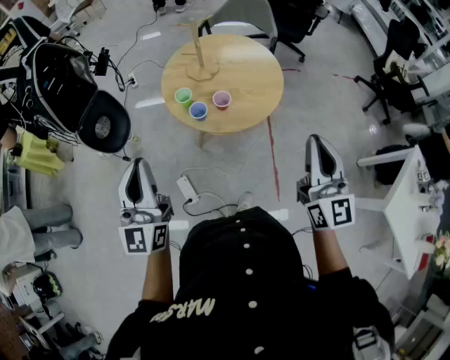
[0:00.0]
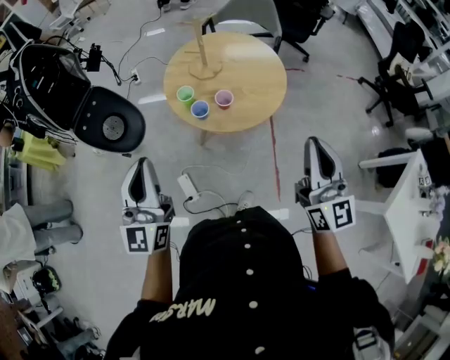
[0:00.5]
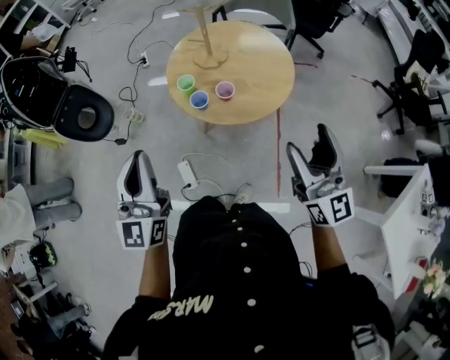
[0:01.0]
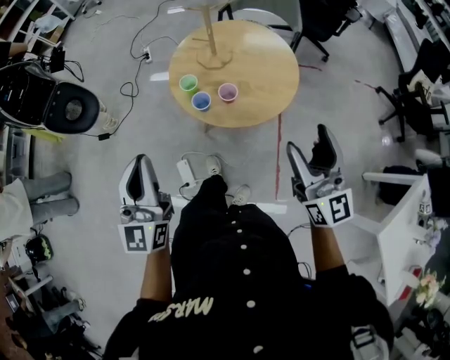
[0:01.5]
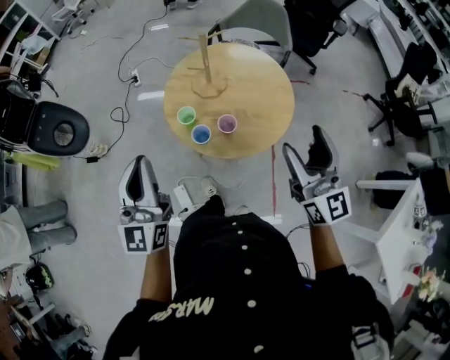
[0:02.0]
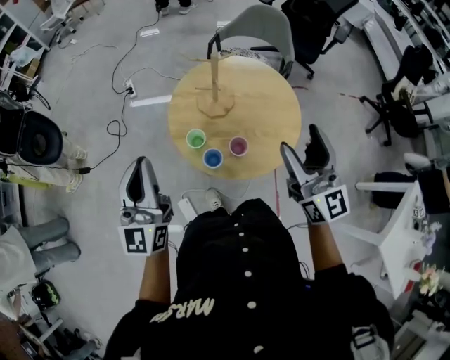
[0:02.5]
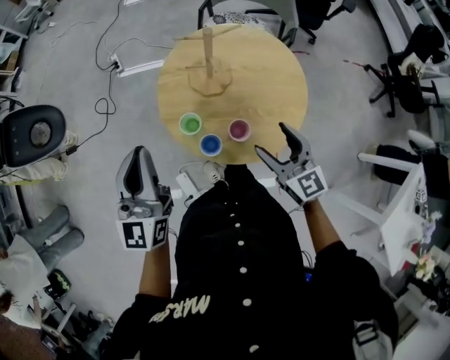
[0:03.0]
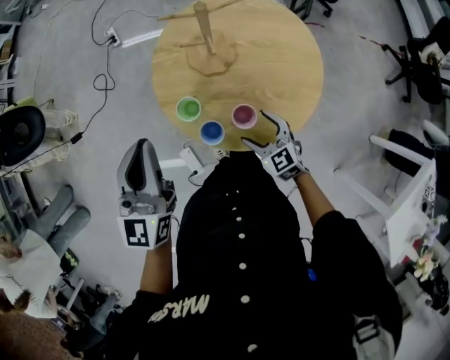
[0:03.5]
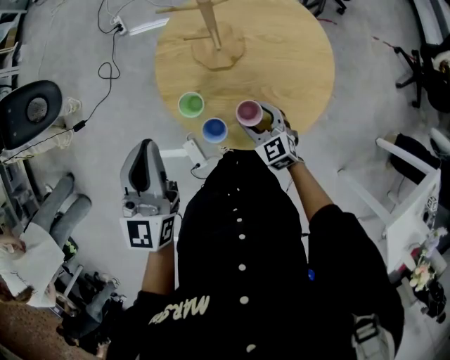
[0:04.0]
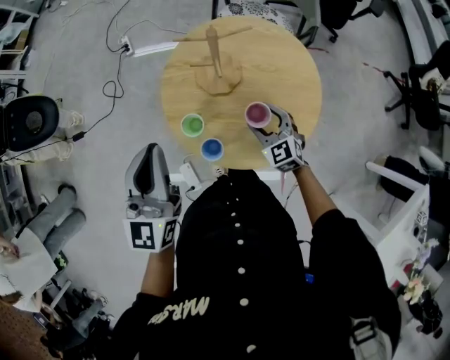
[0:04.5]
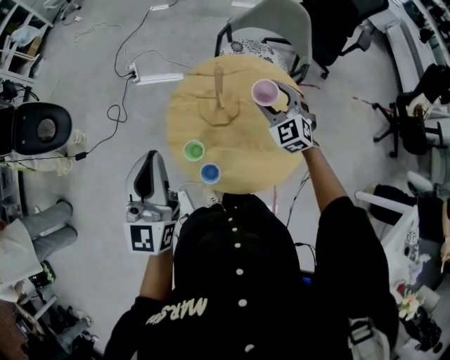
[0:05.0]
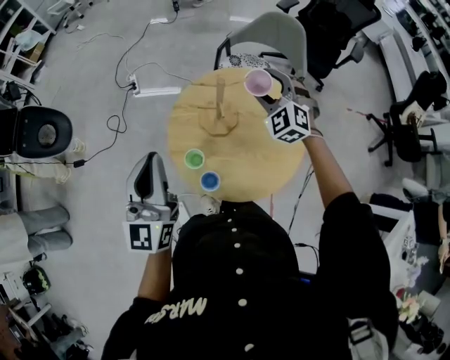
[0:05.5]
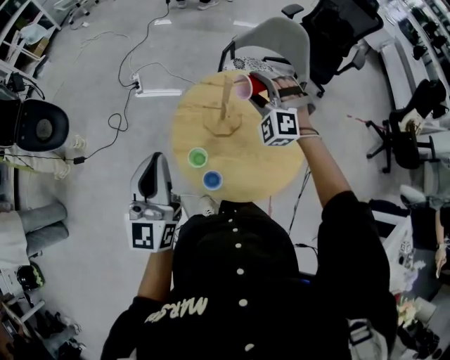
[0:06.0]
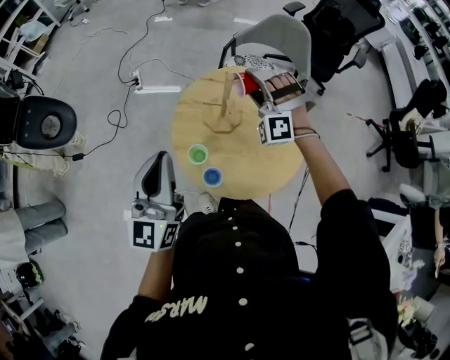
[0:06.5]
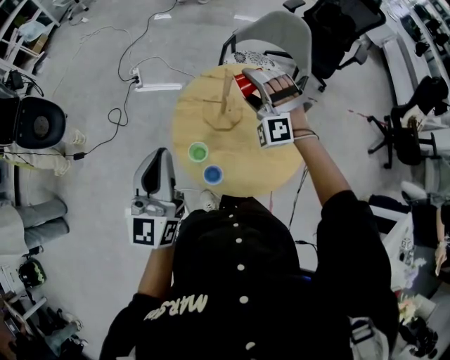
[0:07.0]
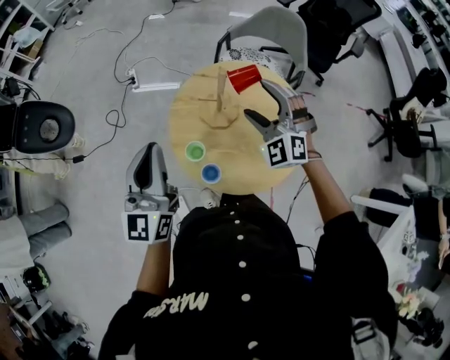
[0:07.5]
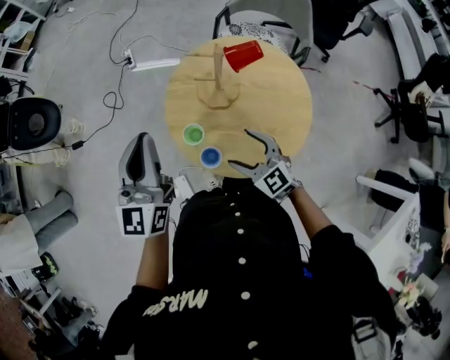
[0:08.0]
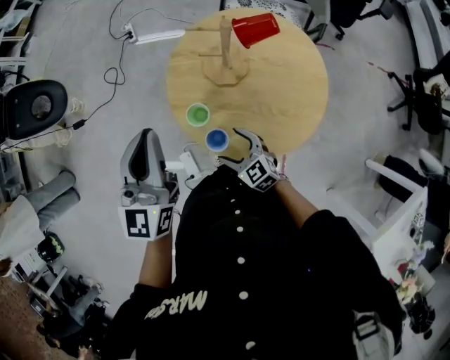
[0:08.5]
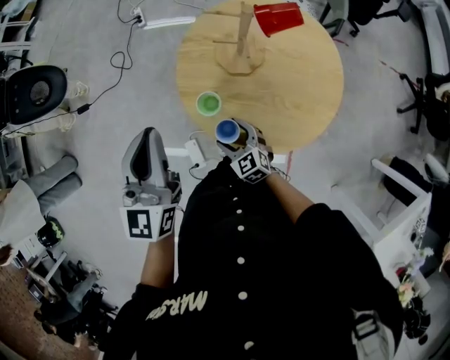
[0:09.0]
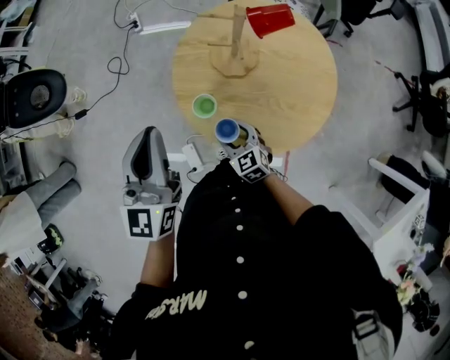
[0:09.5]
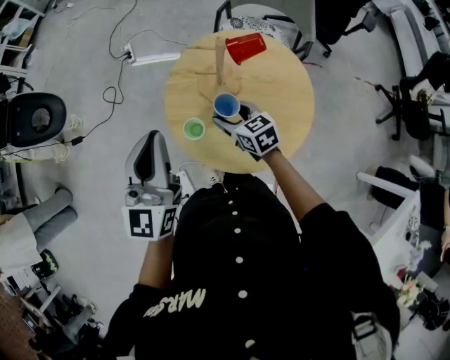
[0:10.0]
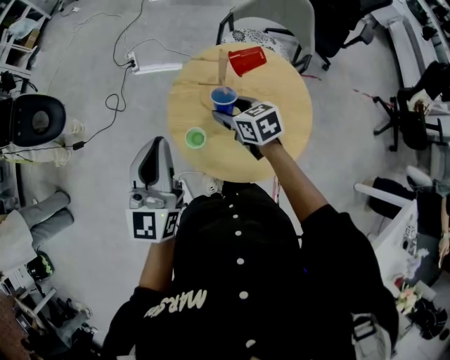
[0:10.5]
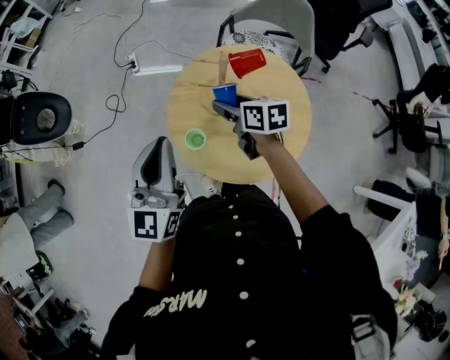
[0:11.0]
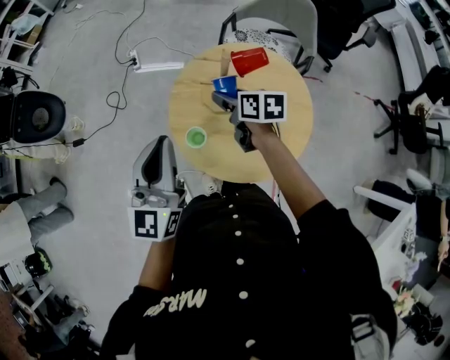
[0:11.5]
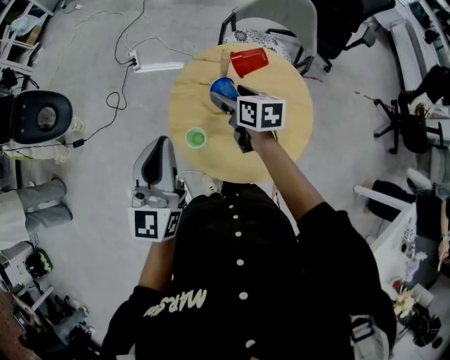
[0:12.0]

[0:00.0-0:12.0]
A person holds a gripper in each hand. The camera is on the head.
0:00.0 to 0:02.0: The two grippers go some 15 cm forward. The right gripper opens.
0:02.0 to 0:04.0: The right gripper travels downward and forward by approximately 50 cm, and angles its fingers downward, by about 50 degrees; the left gripper is displaced forward and downward by some 25 cm.
0:04.0 to 0:06.0: The left gripper heads upward, covering some 15 cm, while the right gripper goes approximately 35 cm upward and forward, and rolls counterclockwise, seen from behind, by approximately 60 degrees.
0:06.0 to 0:08.0: The right gripper shifts roughly 25 cm backward and downward, and rotates around the line of its fingers by approximately 60 degrees, clockwise from behind.
0:08.0 to 0:10.0: The right gripper goes roughly 10 cm forward, goes downward and returns, some 15 cm each way, and swivels about 30 degrees.
0:10.0 to 0:12.0: The right gripper is displaced upward and forward by approximately 10 cm, and rotates some 20 degrees.

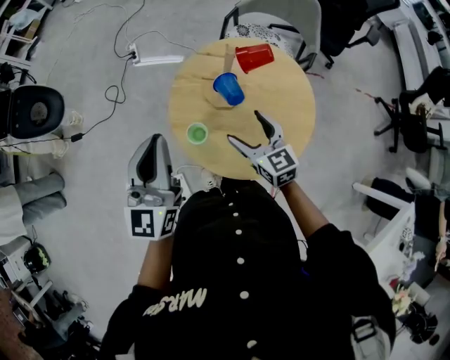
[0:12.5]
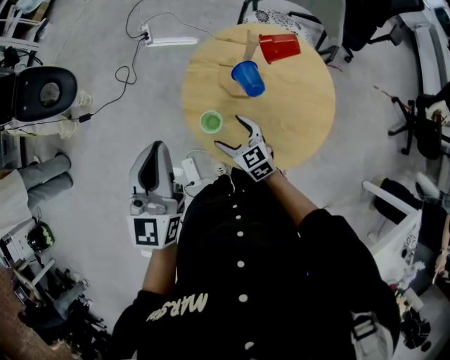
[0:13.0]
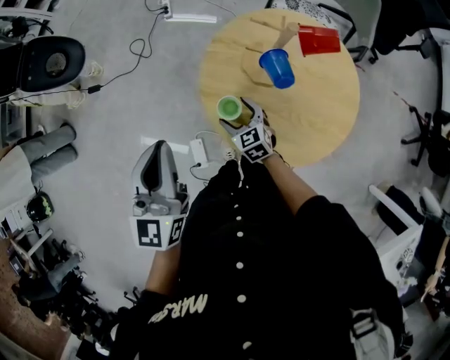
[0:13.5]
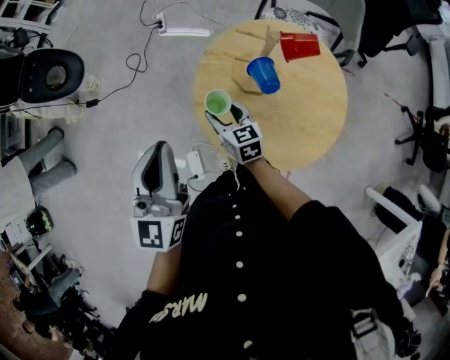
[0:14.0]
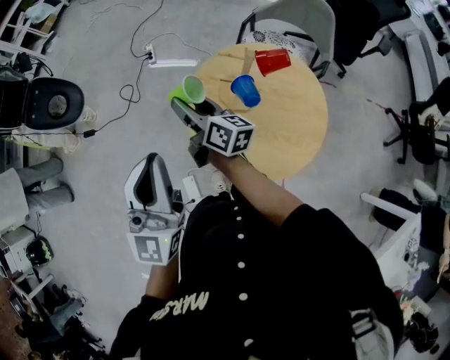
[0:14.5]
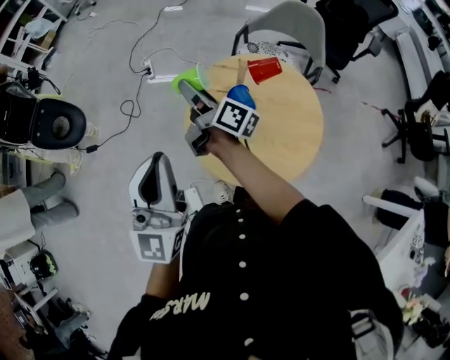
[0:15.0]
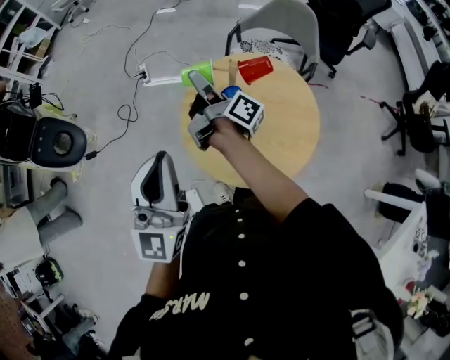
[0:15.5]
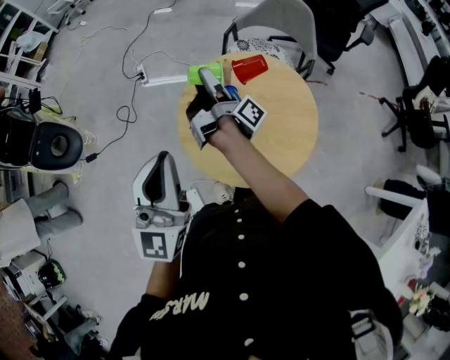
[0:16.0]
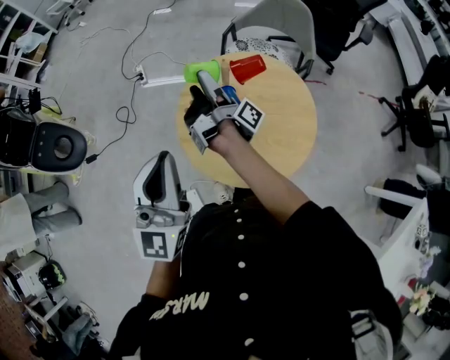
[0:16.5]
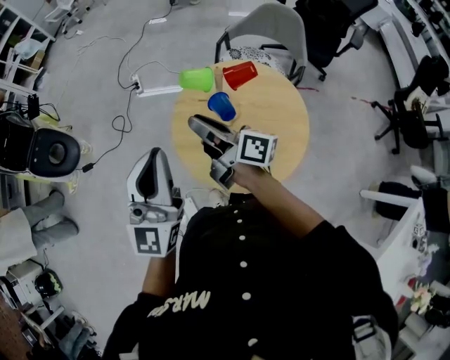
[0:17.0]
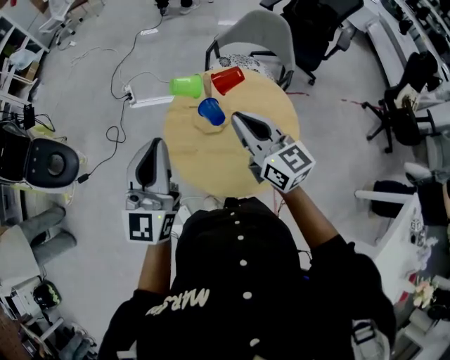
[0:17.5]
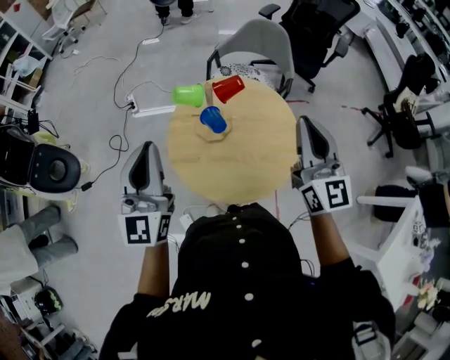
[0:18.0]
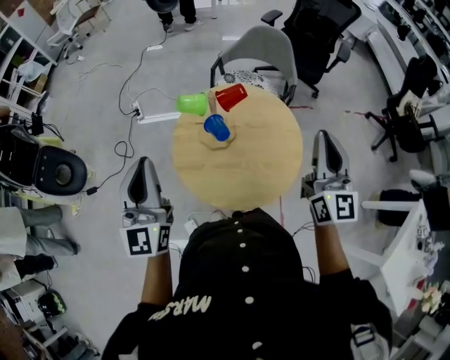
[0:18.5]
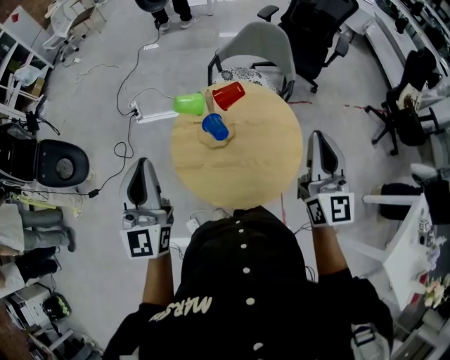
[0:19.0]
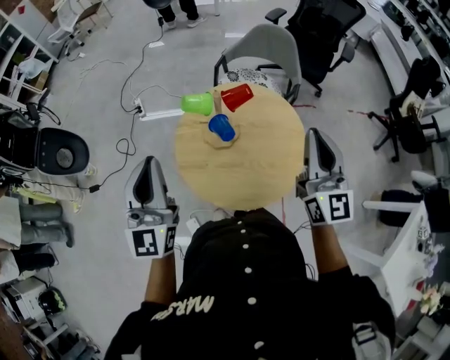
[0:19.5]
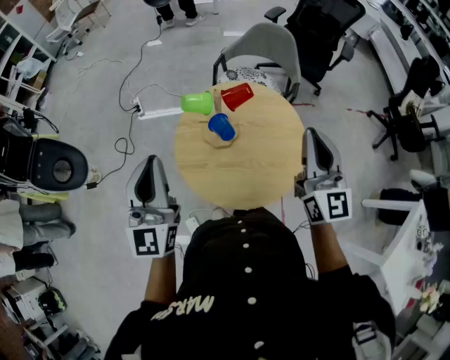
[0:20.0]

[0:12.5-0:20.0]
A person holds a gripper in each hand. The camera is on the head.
0:12.5 to 0:14.5: The right gripper shifts about 20 cm to the left and forward, reaches approximately 20 cm downward, then returns, rolls clockwise, seen from behind, by roughly 40 degrees, and closes its fingers. The left gripper shifts roughly 5 cm upward.
0:14.5 to 0:16.5: The left gripper goes some 5 cm to the right. Meanwhile the right gripper heads to the right and forward, covering approximately 15 cm, and twists approximately 50 degrees clockwise, seen from behind.
0:16.5 to 0:18.0: The right gripper travels to the right, backward and upward by roughly 35 cm, rolls counterclockwise, seen from behind, by roughly 110 degrees, and closes its fingers.
0:18.0 to 0:20.0: The grippers make only small movements.

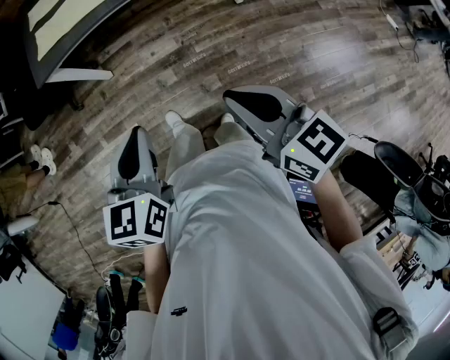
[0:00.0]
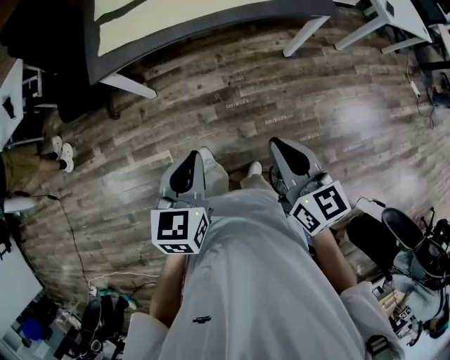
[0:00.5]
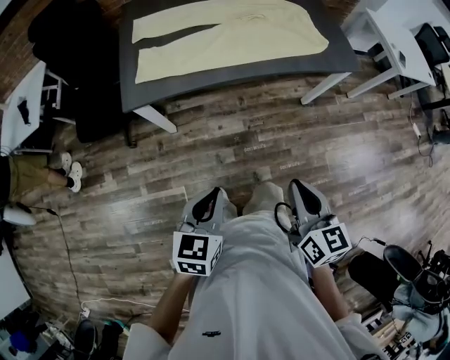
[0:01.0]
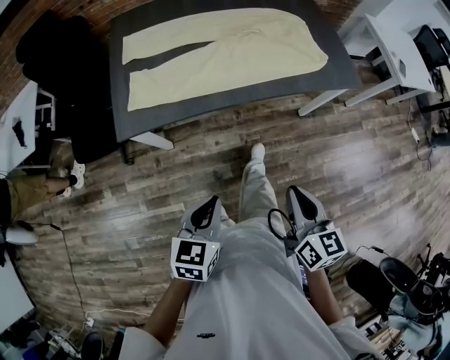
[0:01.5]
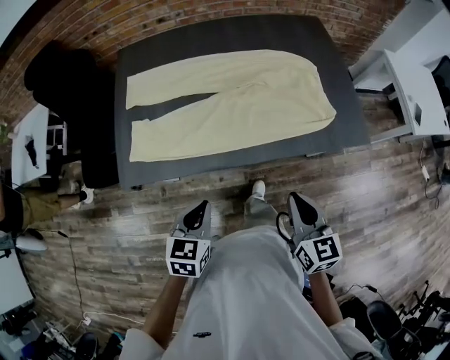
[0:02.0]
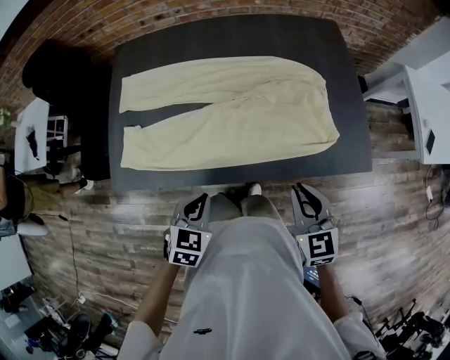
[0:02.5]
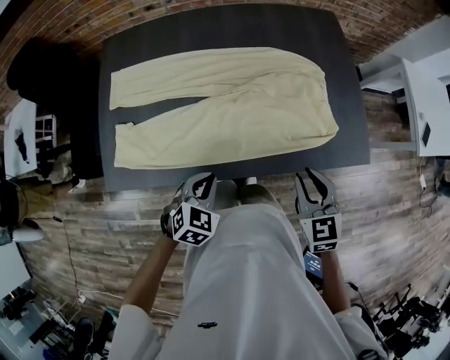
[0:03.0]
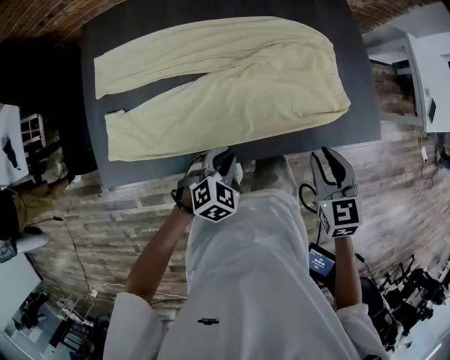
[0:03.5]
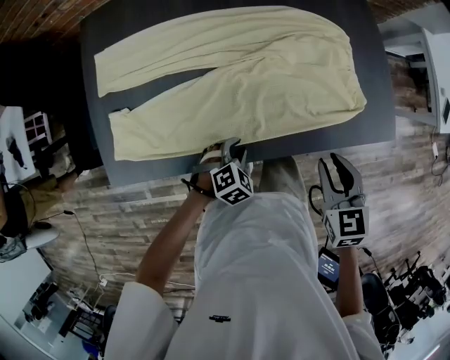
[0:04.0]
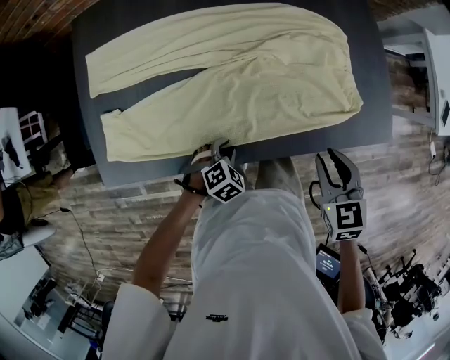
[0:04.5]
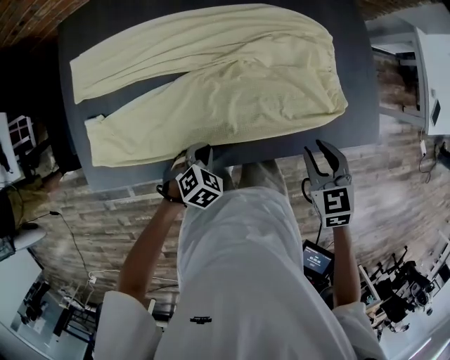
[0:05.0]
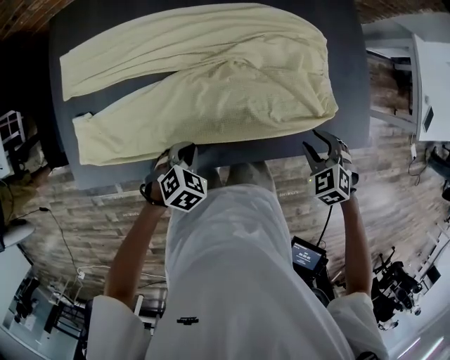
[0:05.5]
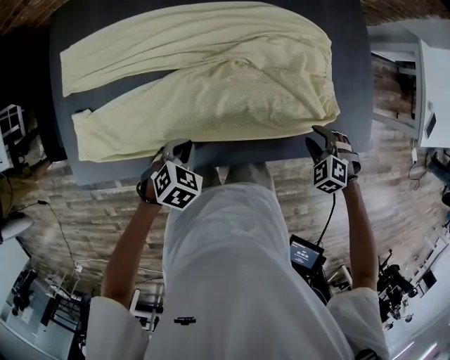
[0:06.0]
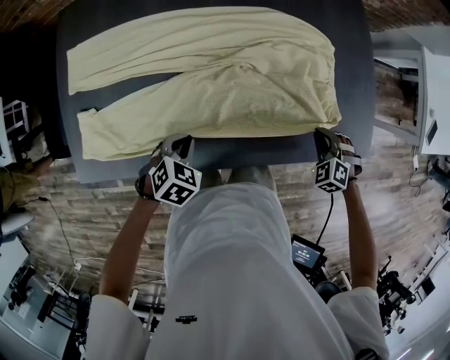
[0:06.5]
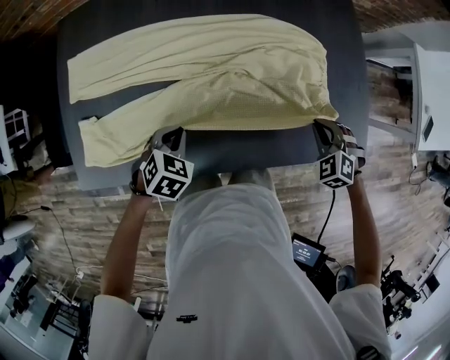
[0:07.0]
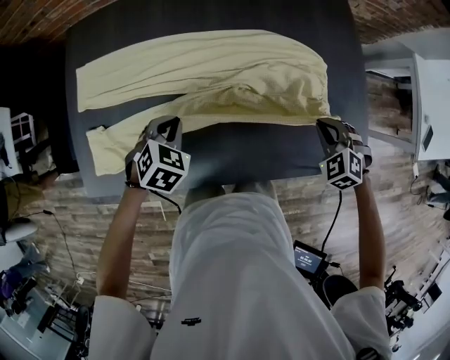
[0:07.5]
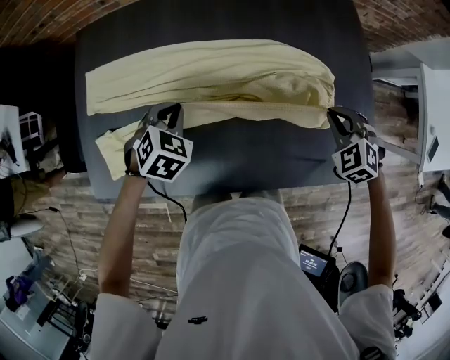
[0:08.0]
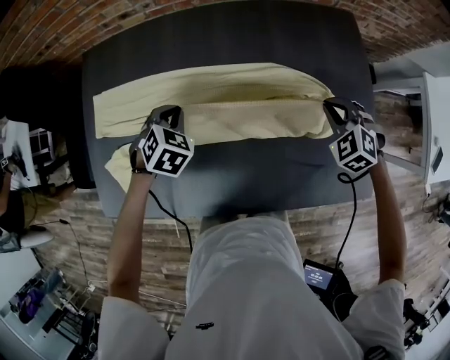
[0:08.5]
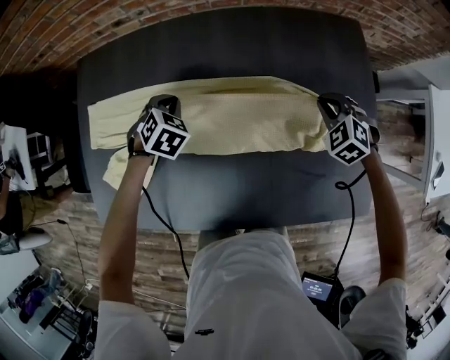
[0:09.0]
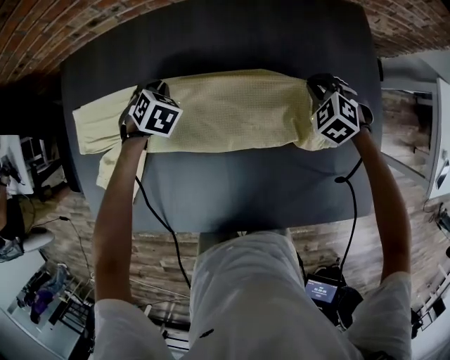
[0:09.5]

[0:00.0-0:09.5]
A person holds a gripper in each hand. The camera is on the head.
0:00.0 to 0:02.0: Both grippers are carried forward, roughly 40 cm. The right gripper turns by approximately 20 degrees.
0:02.0 to 0:04.0: The left gripper goes roughly 30 cm downward and forward, rotates around the line of its fingers by roughly 40 degrees, clockwise from behind, and opens its fingers, while the right gripper heads forward and downward, covering about 20 cm, turns by about 20 degrees, and opens.
0:04.0 to 0:05.5: The left gripper closes its fingers; the right gripper shifts roughly 20 cm downward, to the right and forward, and turns by roughly 40 degrees.
0:05.5 to 0:07.5: The right gripper heads forward, covering approximately 10 cm, and closes its fingers; the left gripper heads forward, upward and to the left, covering roughly 15 cm.
0:07.5 to 0:09.5: The two grippers go roughly 25 cm forward.
